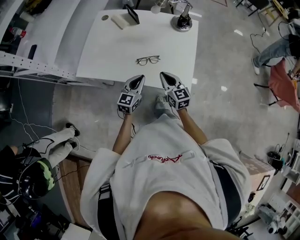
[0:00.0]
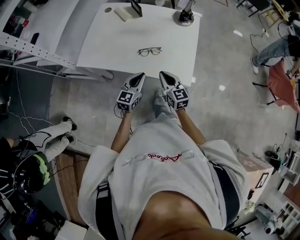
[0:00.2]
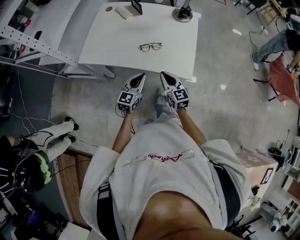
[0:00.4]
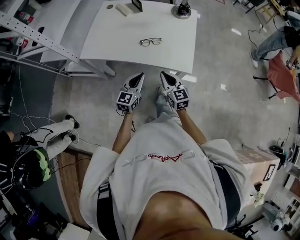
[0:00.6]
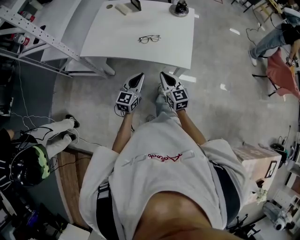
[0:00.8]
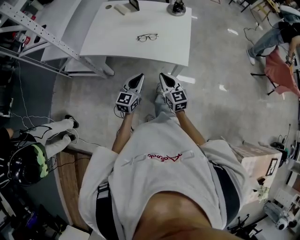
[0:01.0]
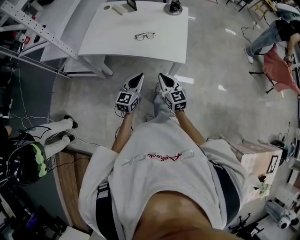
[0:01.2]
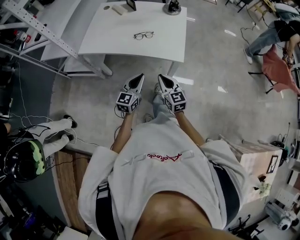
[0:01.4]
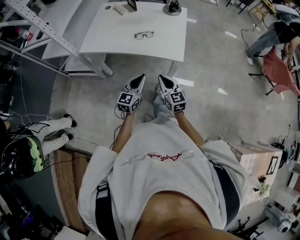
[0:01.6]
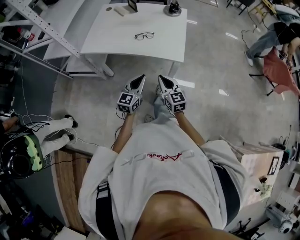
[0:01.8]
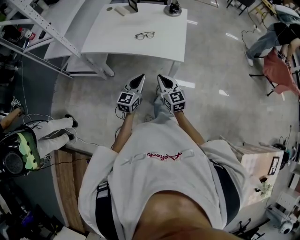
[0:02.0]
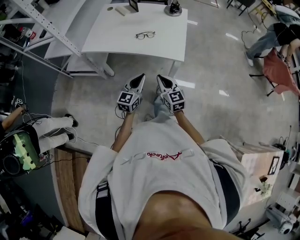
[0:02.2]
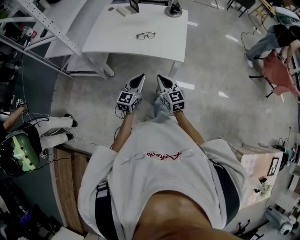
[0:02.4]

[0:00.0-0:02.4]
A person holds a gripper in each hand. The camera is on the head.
0:00.0 to 0:01.2: The two grippers go roughly 20 cm backward.
0:01.2 to 0:02.4: The grippers make only small movements.

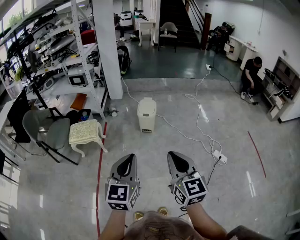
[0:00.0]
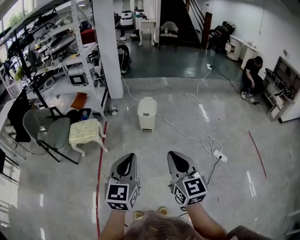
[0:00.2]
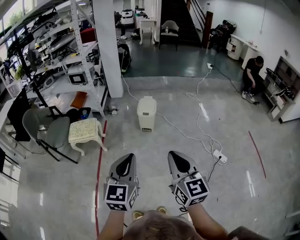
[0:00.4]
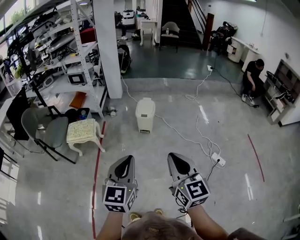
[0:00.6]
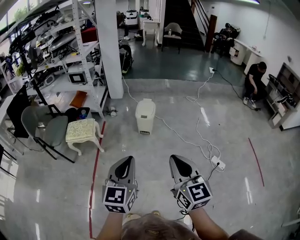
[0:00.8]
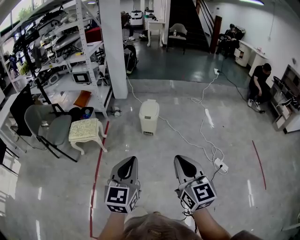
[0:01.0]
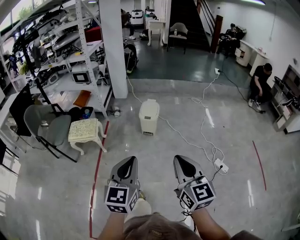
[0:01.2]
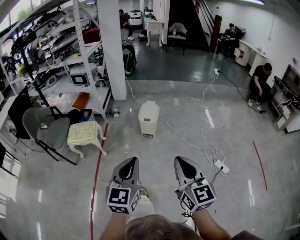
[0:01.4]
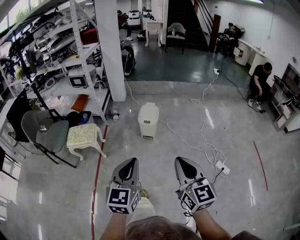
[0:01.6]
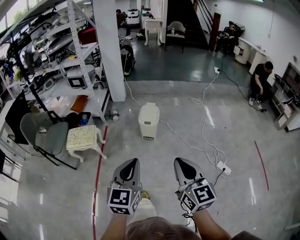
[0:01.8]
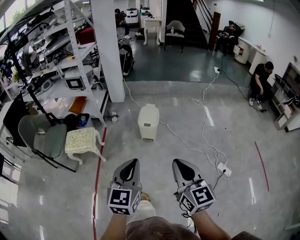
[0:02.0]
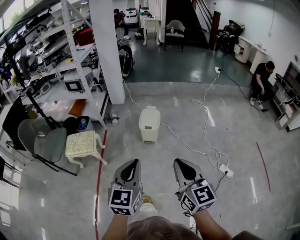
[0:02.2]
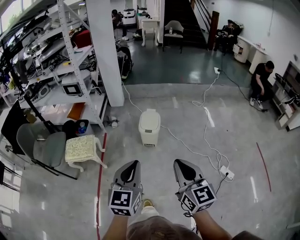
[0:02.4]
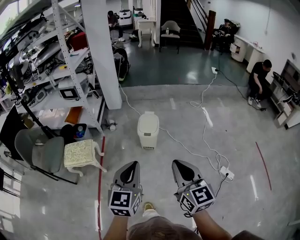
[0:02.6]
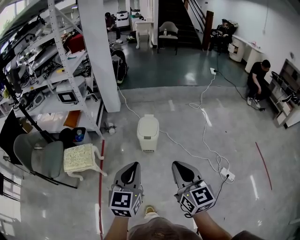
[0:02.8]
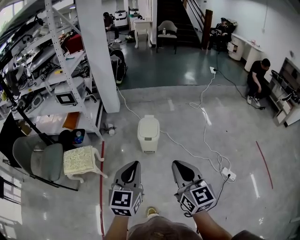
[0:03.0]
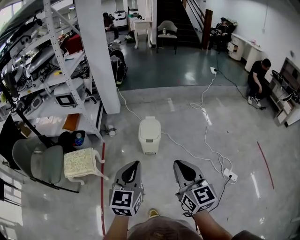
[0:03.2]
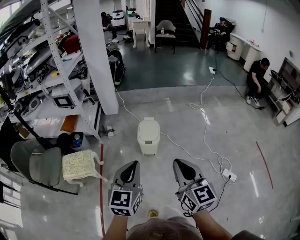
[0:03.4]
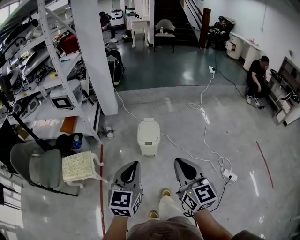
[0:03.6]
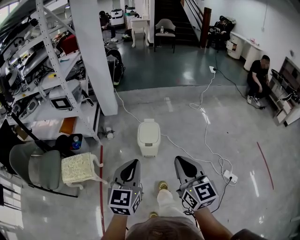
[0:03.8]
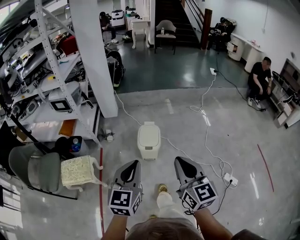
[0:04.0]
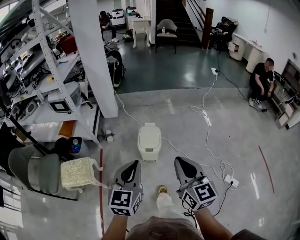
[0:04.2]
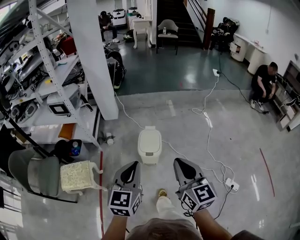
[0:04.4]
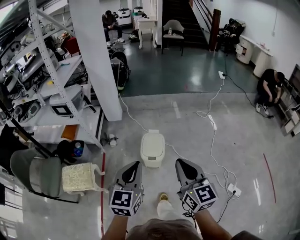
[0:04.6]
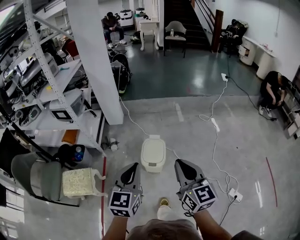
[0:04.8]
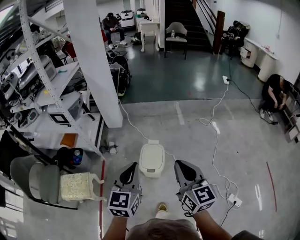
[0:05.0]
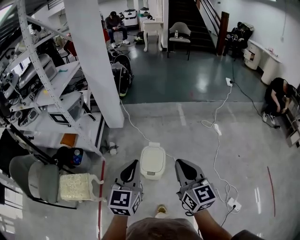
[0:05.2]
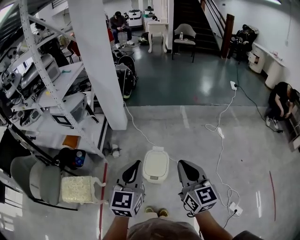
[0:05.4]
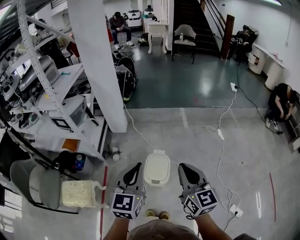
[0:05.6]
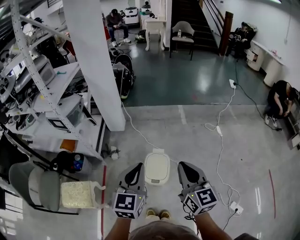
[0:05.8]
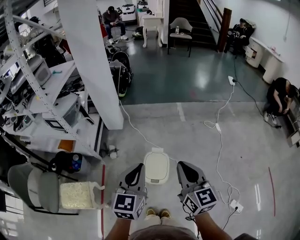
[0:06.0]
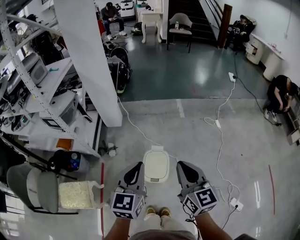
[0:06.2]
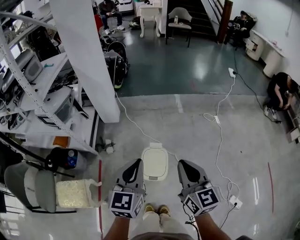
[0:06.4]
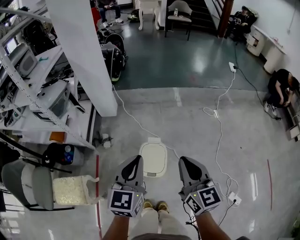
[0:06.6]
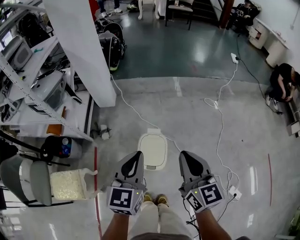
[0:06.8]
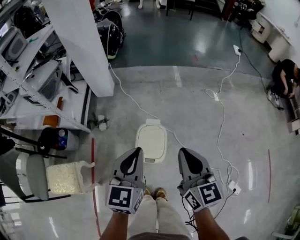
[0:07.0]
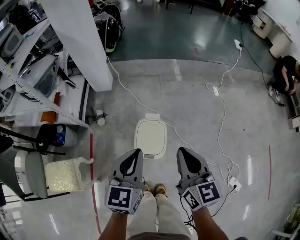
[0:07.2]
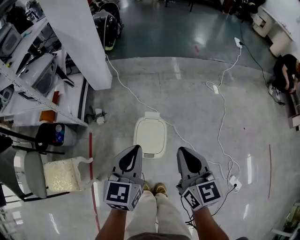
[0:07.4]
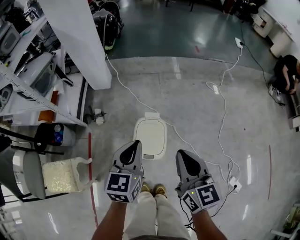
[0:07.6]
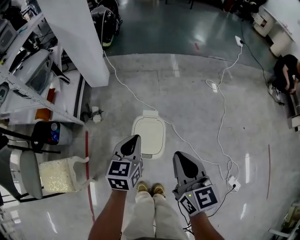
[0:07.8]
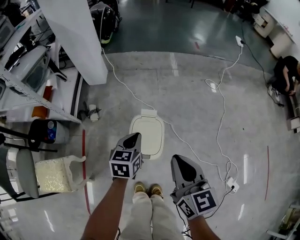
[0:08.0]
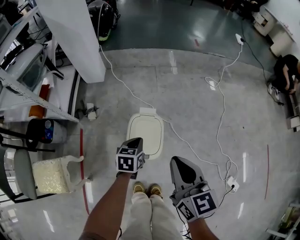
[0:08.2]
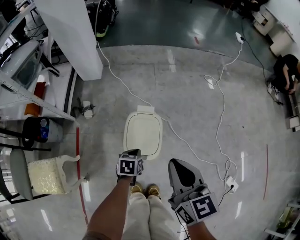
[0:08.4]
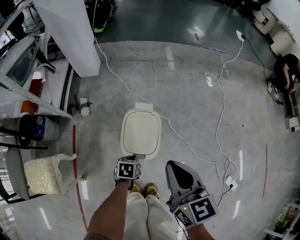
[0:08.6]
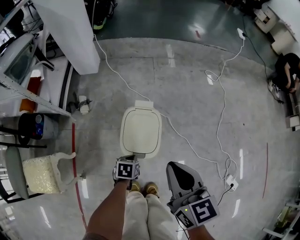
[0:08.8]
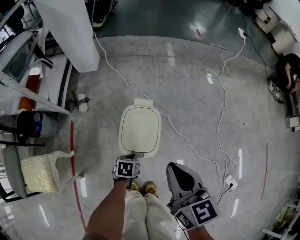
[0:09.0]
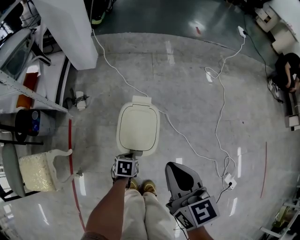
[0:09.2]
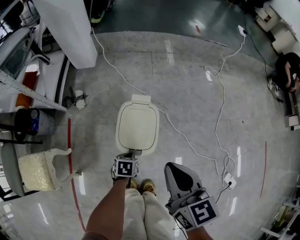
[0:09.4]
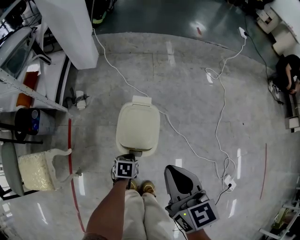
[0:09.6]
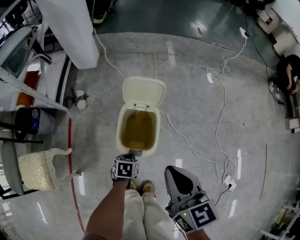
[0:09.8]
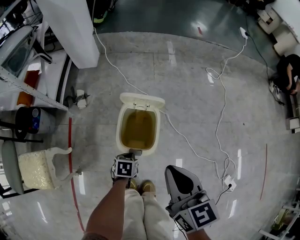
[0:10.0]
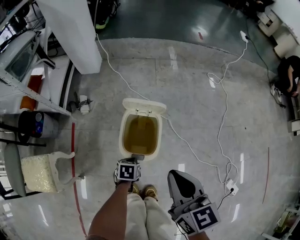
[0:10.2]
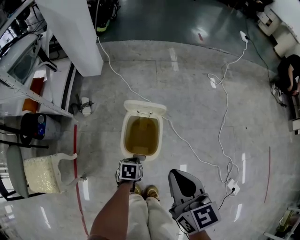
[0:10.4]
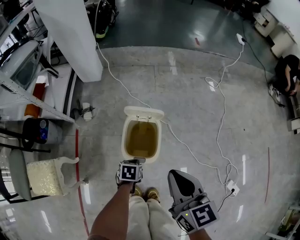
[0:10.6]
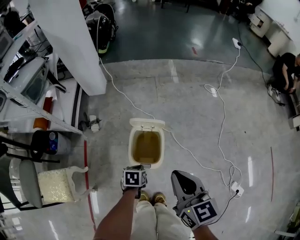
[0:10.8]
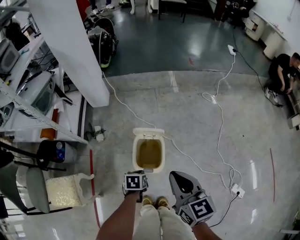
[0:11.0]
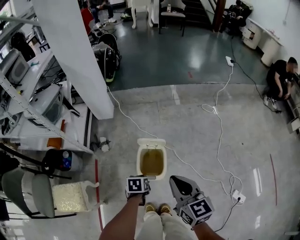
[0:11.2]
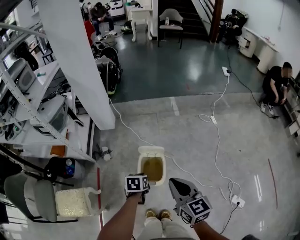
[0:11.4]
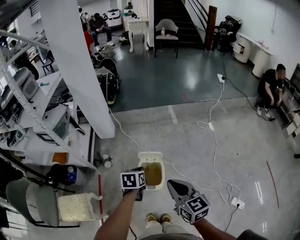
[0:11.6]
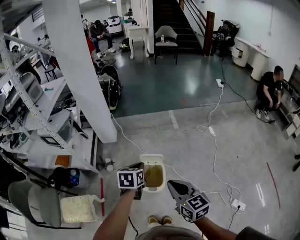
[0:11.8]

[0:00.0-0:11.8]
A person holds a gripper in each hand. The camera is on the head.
0:00.0 to 0:01.4: The right gripper is displaced to the right and forward by approximately 10 cm. The left gripper travels forward by roughly 5 cm.
0:01.4 to 0:03.0: The two grippers go approximately 25 cm forward.
0:03.0 to 0:04.4: The grippers both shift forward by about 15 cm.
0:04.4 to 0:06.0: The grippers both shift forward by approximately 25 cm.
0:06.0 to 0:07.4: Both grippers travel together downward, about 15 cm.
0:07.4 to 0:08.8: The right gripper heads downward, covering some 10 cm. Meanwhile the left gripper shifts about 40 cm downward, and angles its fingers downward, by roughly 50 degrees.
0:08.8 to 0:10.4: The grippers move only a little.
0:10.4 to 0:11.8: The right gripper heads upward, covering approximately 20 cm; the left gripper goes approximately 50 cm upward, and turns by roughly 30 degrees.

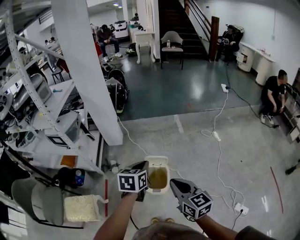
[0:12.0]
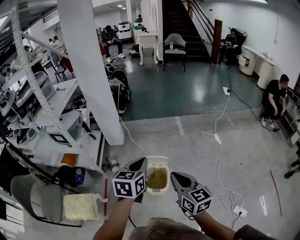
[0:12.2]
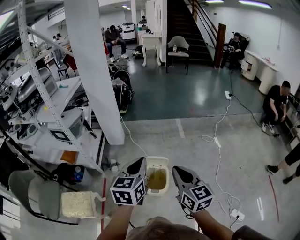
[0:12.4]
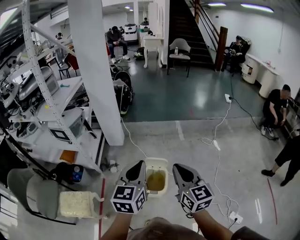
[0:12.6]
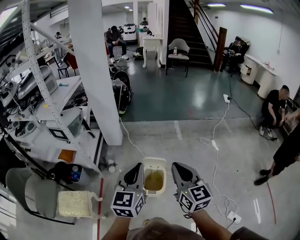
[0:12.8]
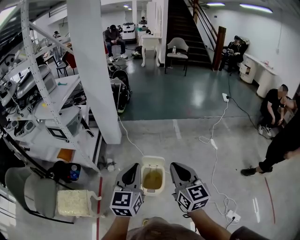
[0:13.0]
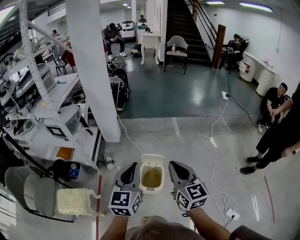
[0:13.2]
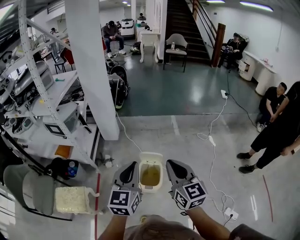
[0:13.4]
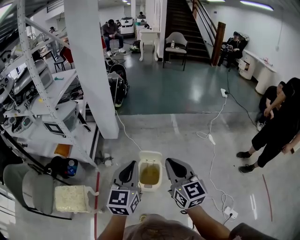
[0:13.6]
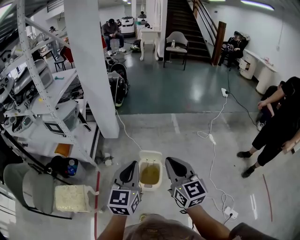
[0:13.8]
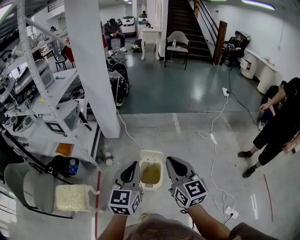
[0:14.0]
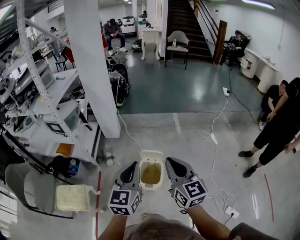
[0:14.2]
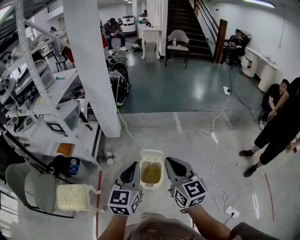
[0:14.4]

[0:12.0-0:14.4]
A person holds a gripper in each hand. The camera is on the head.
0:12.0 to 0:13.2: The left gripper travels upward and backward by about 10 cm, and turns by roughly 30 degrees. The right gripper moves upward, roughly 10 cm.
0:13.2 to 0:14.4: There are only small adjustments of the grippers.

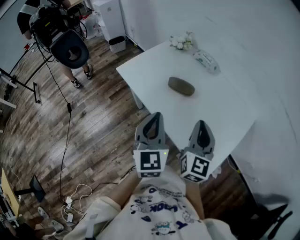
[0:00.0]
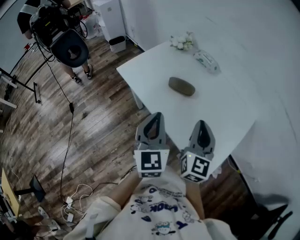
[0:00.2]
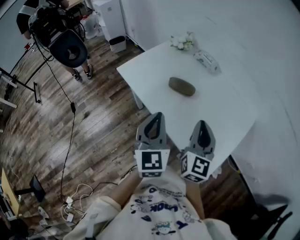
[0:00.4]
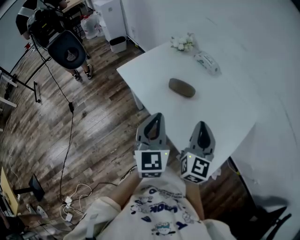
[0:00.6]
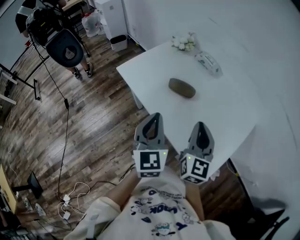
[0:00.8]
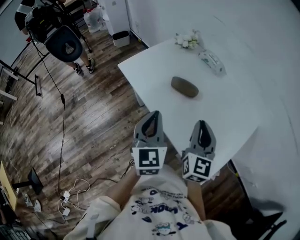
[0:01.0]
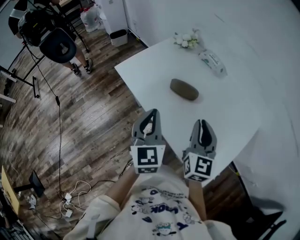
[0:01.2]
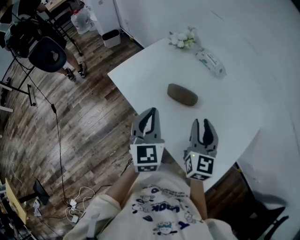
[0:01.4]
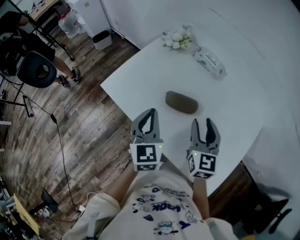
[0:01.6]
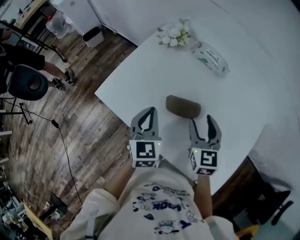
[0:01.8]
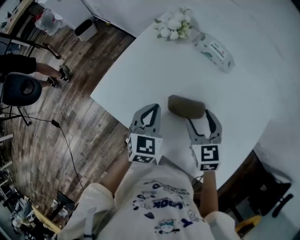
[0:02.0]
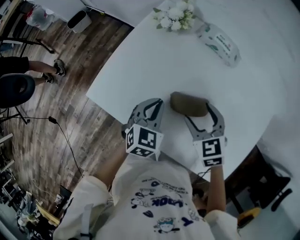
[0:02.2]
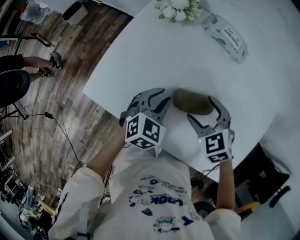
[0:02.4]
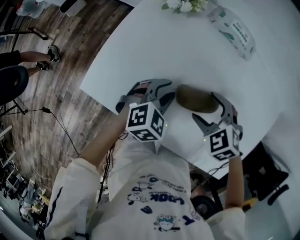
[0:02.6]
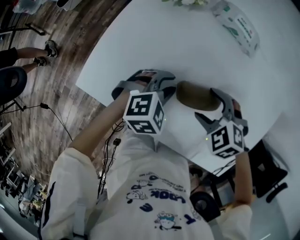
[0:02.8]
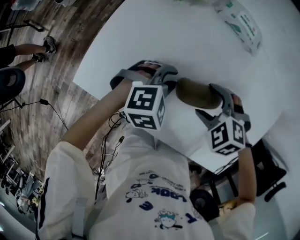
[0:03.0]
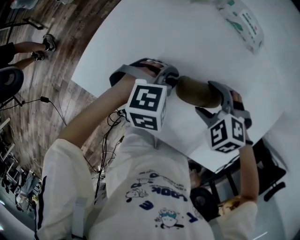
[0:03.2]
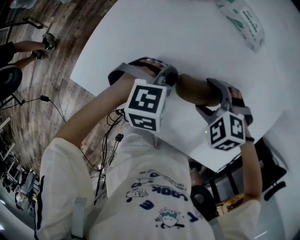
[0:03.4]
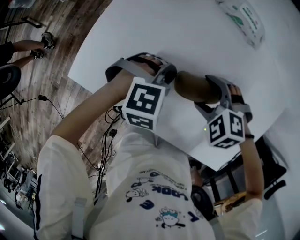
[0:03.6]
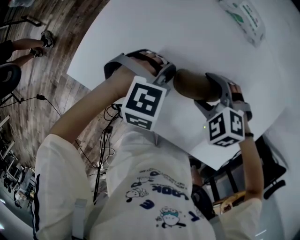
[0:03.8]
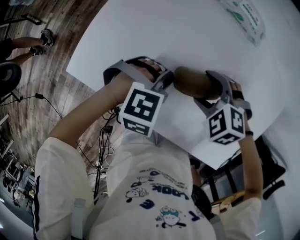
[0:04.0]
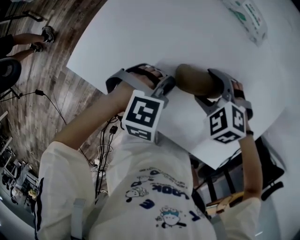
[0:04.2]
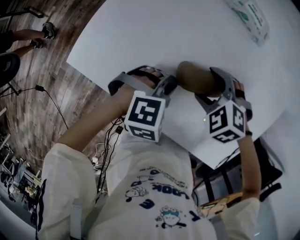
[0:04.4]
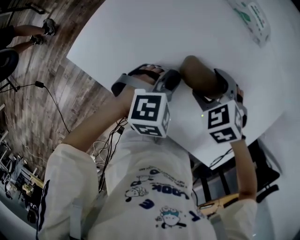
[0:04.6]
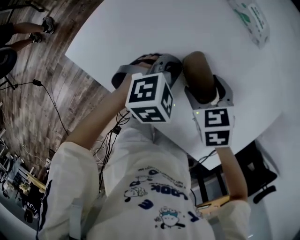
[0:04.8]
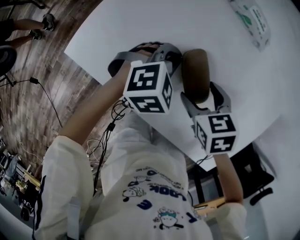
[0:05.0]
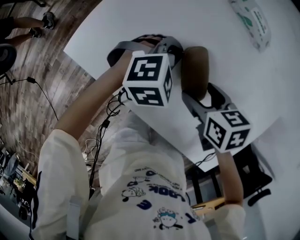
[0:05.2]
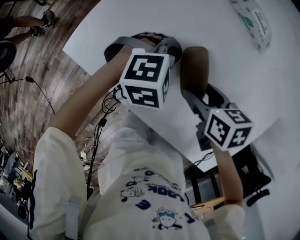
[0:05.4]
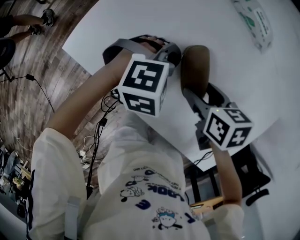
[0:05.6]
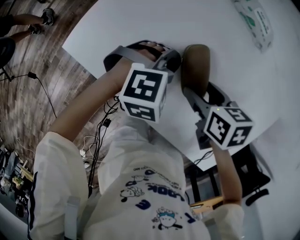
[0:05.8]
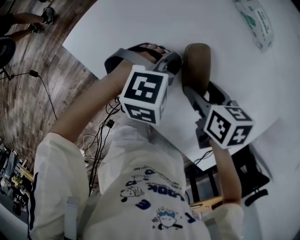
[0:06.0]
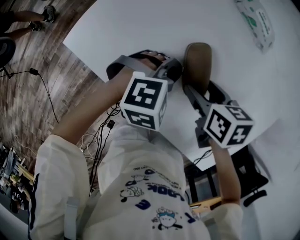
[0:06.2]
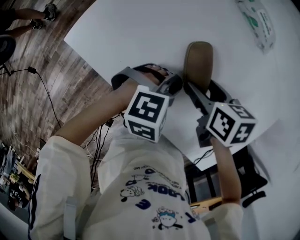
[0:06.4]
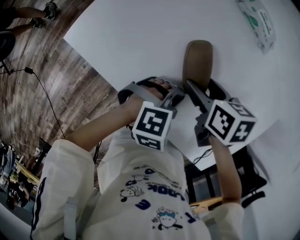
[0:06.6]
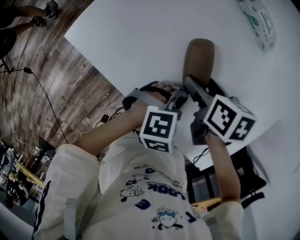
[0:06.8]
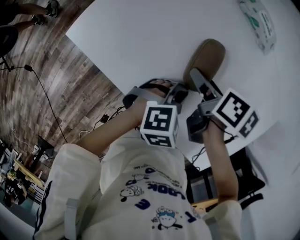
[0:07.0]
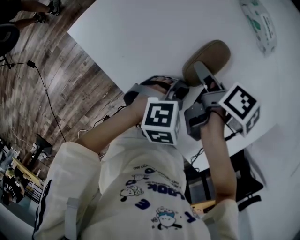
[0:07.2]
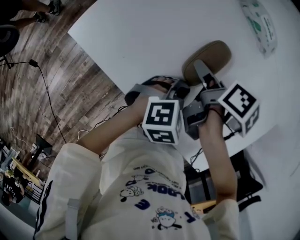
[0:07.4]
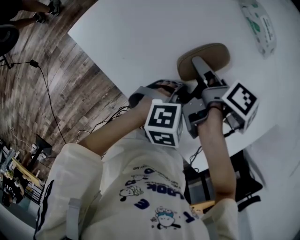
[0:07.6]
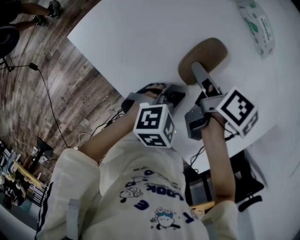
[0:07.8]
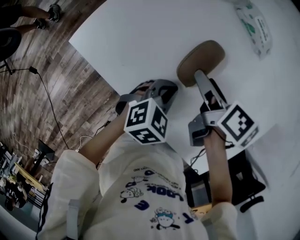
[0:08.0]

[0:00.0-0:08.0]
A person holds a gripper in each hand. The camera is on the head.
0:00.0 to 0:01.6: Both grippers travel together forward and downward, roughly 20 cm. The right gripper opens.
0:01.6 to 0:03.2: Both grippers travel together downward, some 20 cm. The right gripper angles its fingers downward, by some 50 degrees, and opens its fingers, while the left gripper angles its fingers downward, by approximately 40 degrees.
0:03.2 to 0:04.8: The right gripper changes its angle by about 40 degrees; the left gripper turns by roughly 20 degrees.
0:04.8 to 0:06.4: The right gripper turns by roughly 30 degrees, while the left gripper shifts by approximately 10 cm.
0:06.4 to 0:08.0: The right gripper moves some 5 cm, and changes its angle by about 30 degrees; the left gripper swivels approximately 40 degrees.
